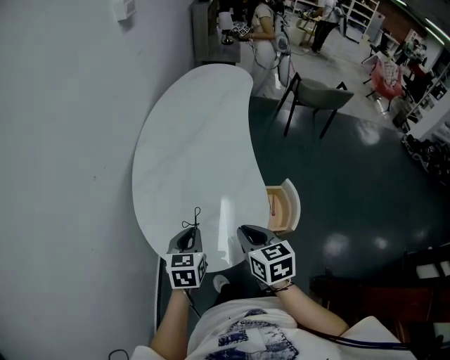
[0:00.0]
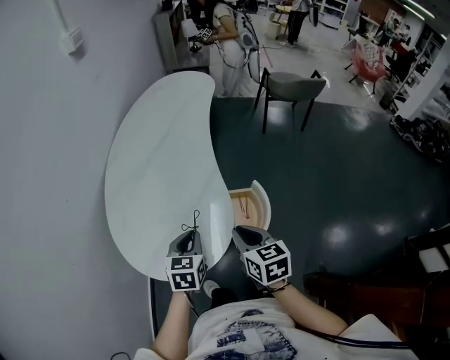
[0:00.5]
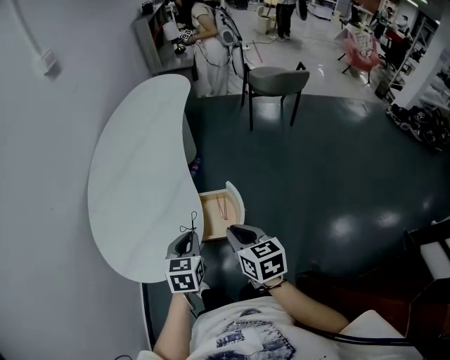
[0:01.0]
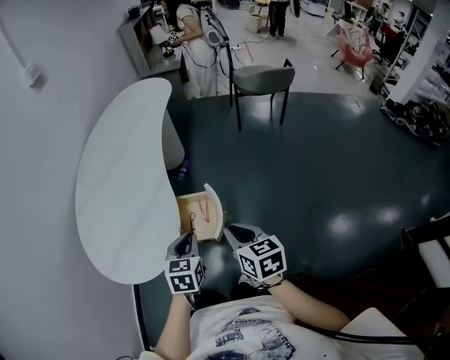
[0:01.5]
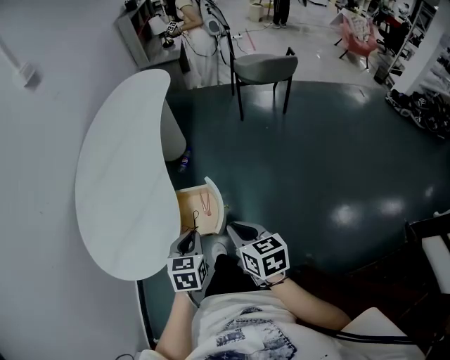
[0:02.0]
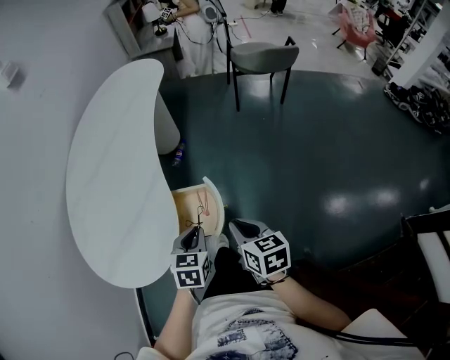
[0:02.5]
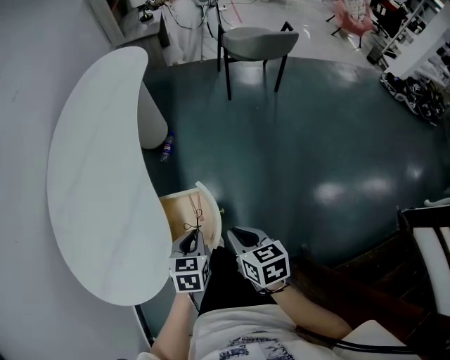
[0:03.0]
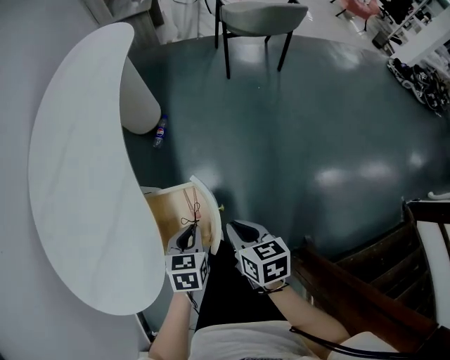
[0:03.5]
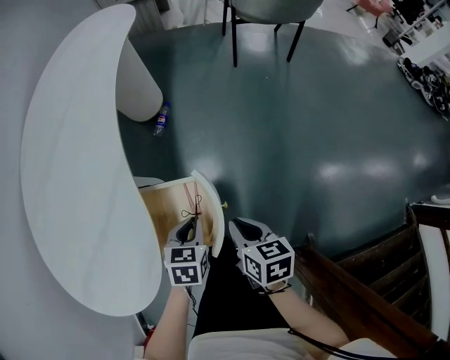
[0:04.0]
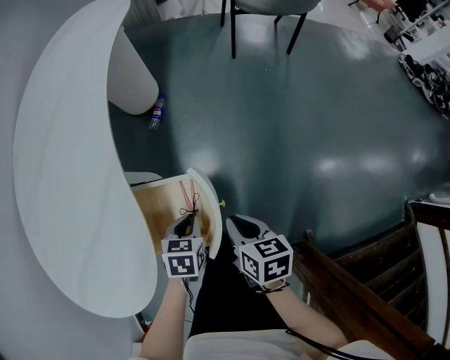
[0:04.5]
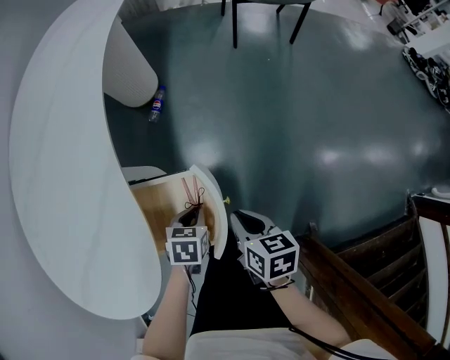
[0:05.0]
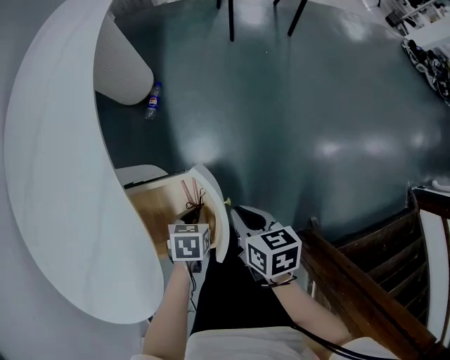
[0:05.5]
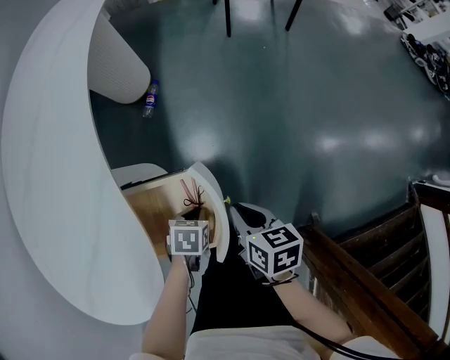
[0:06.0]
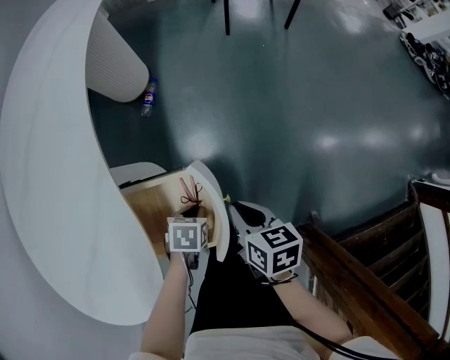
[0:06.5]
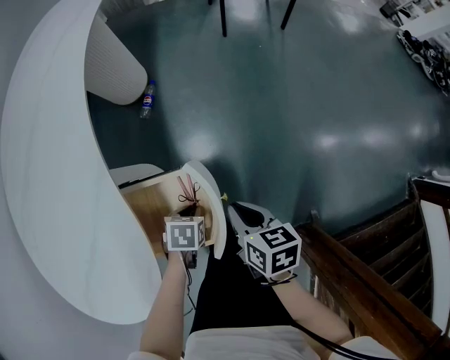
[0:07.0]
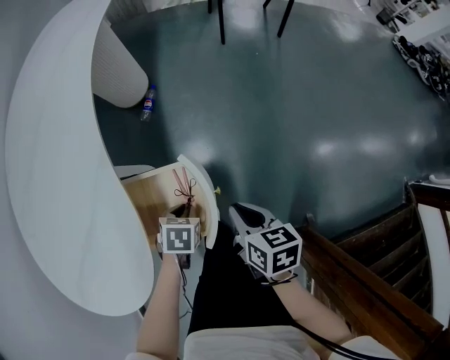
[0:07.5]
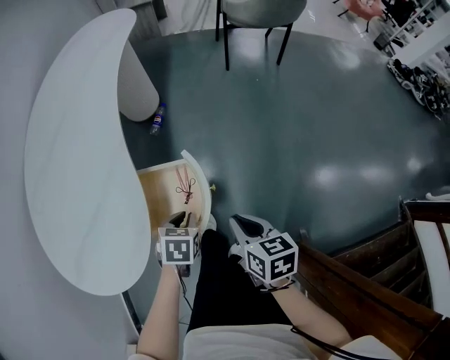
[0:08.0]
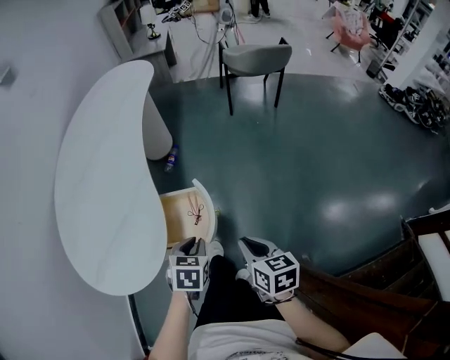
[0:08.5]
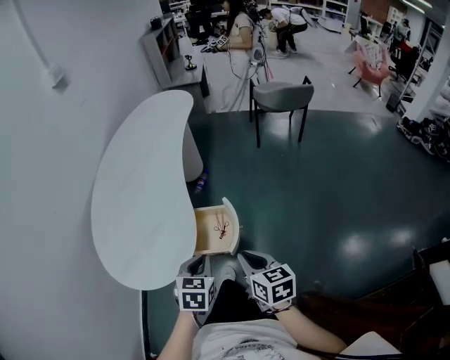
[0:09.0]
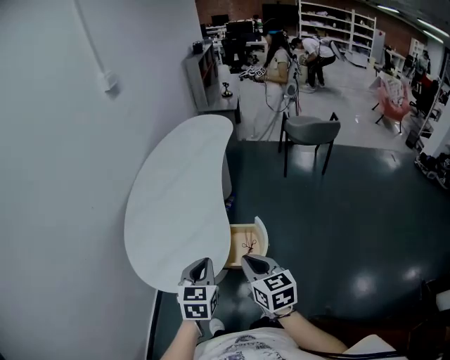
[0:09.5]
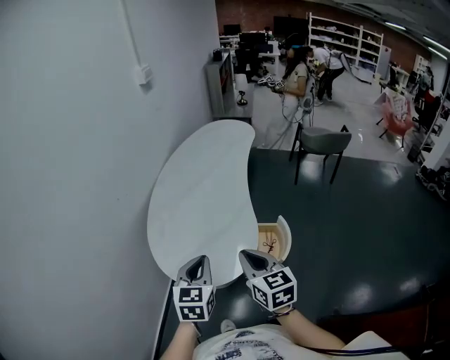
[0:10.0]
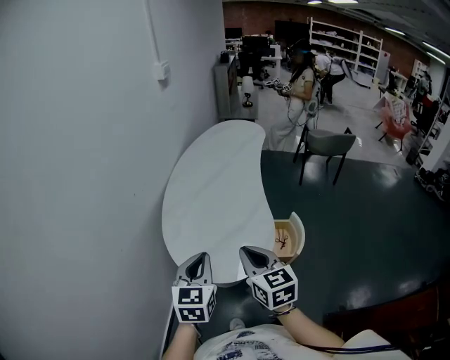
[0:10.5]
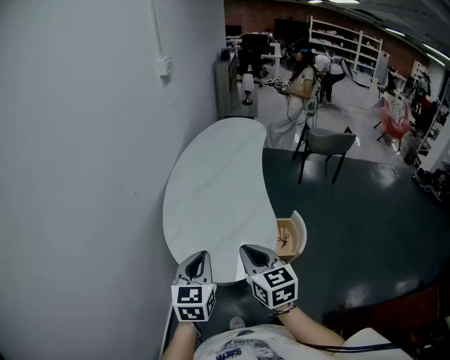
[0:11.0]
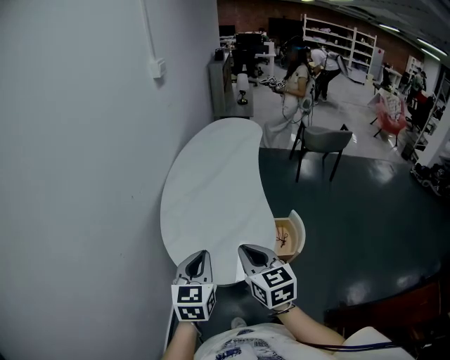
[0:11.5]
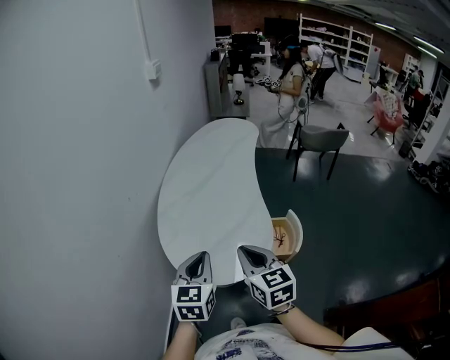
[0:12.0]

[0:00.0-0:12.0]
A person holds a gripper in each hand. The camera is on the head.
0:00.0 to 0:02.0: Both grippers move to the right, some 35 cm.
0:02.0 to 0:04.0: The grippers both shift downward and forward by some 25 cm.
0:04.0 to 0:06.0: The left gripper travels downward by approximately 10 cm, and changes its angle by approximately 20 degrees. Meanwhile the right gripper ends up some 5 cm from where it was.
0:06.0 to 0:08.0: The grippers both shift upward by approximately 10 cm.
0:08.0 to 0:10.0: The grippers both shift upward and to the left by roughly 50 cm. The left gripper tips its fingers upward by approximately 40 degrees; the right gripper changes its angle by approximately 30 degrees.
0:10.0 to 0:12.0: The two grippers go approximately 10 cm to the left.

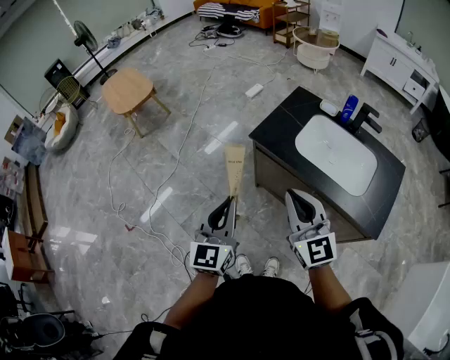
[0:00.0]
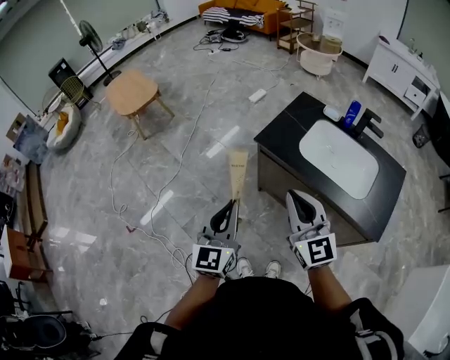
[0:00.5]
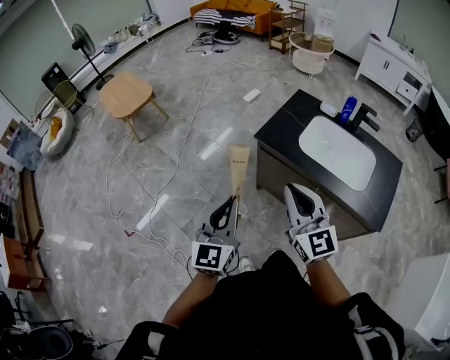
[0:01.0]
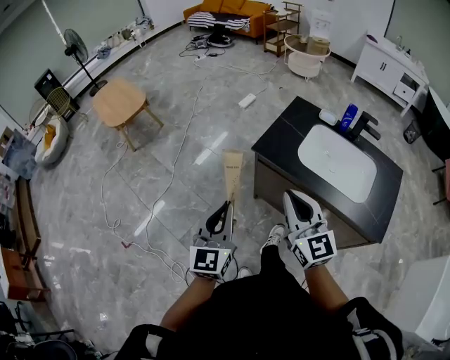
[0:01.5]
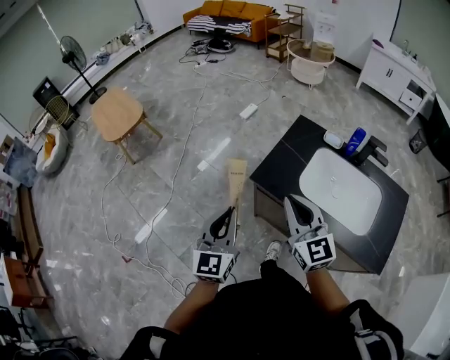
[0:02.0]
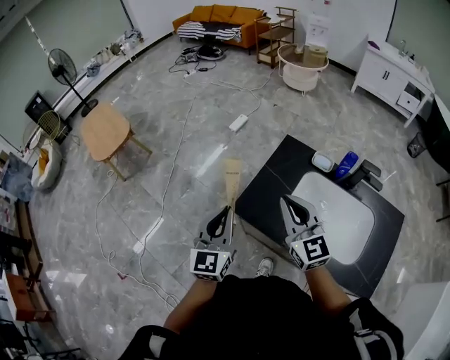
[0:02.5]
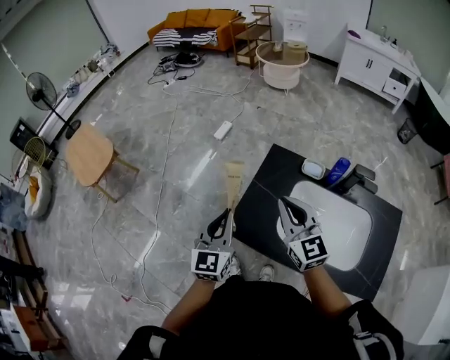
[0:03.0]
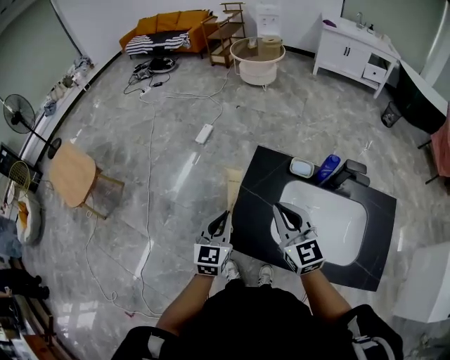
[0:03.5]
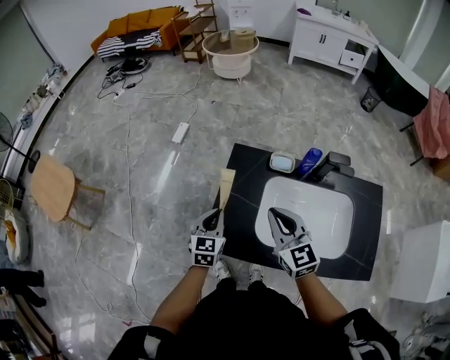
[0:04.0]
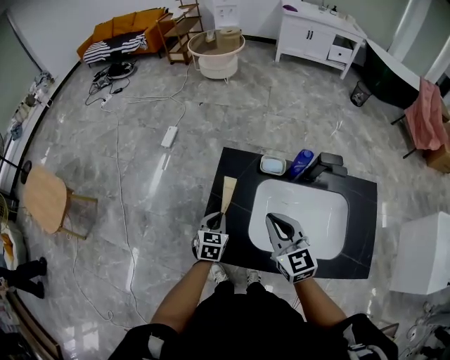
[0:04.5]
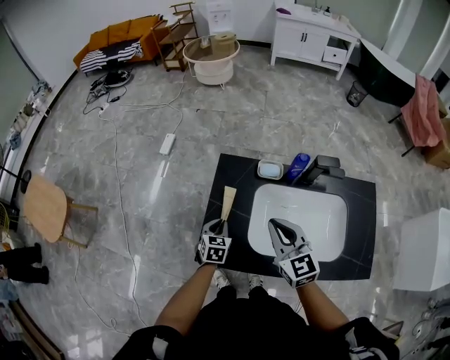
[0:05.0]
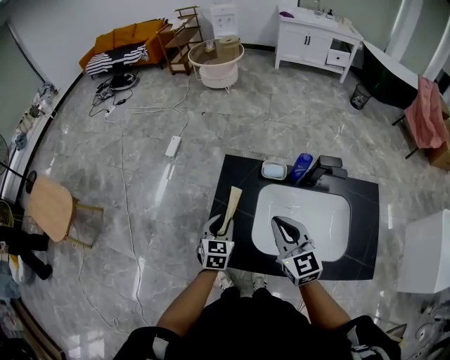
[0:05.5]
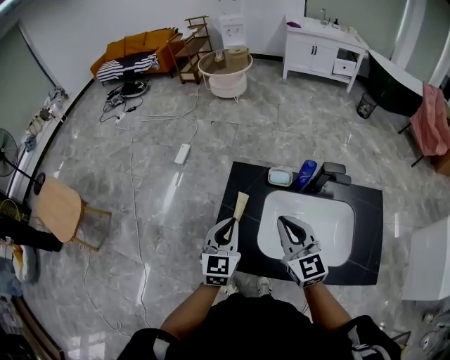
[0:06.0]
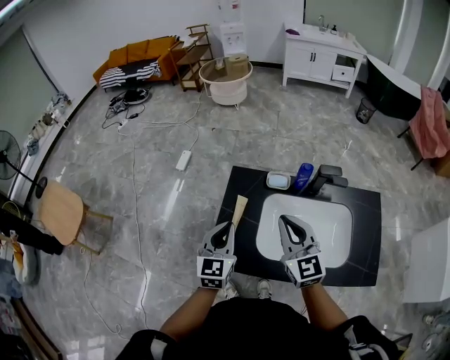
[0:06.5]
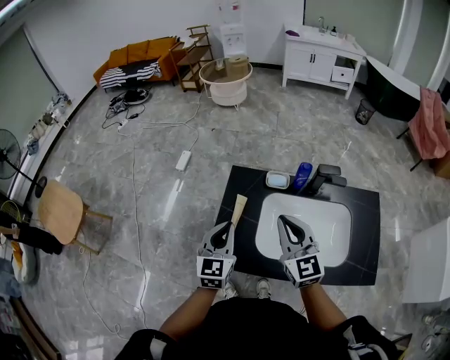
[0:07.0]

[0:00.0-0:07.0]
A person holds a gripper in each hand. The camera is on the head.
0:00.0 to 0:02.0: Both grippers travel together forward, roughly 20 cm.
0:02.0 to 0:03.5: Both grippers travel together forward and to the right, approximately 30 cm. The left gripper turns by some 20 degrees.
0:03.5 to 0:05.0: The left gripper moves downward, roughly 20 cm, and turns by some 30 degrees. Meanwhile the right gripper is displaced to the right by some 5 cm.
0:05.0 to 0:07.0: The left gripper is displaced upward by about 25 cm, swivels about 30 degrees, and opens, then closes again. Meanwhile the right gripper moves upward, roughly 5 cm.

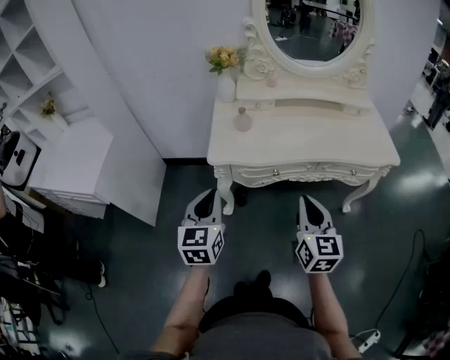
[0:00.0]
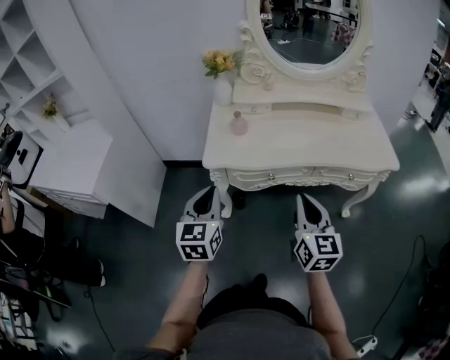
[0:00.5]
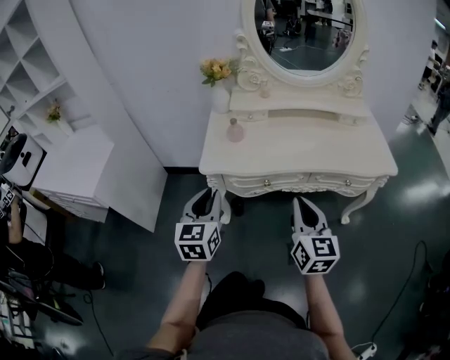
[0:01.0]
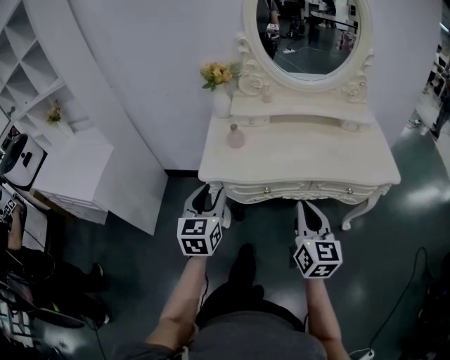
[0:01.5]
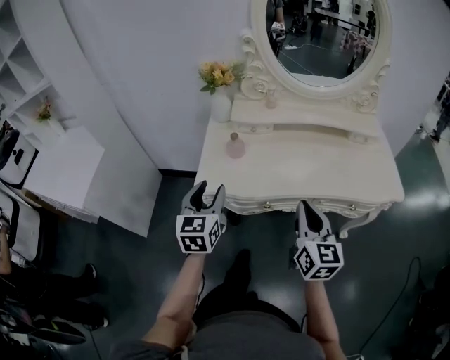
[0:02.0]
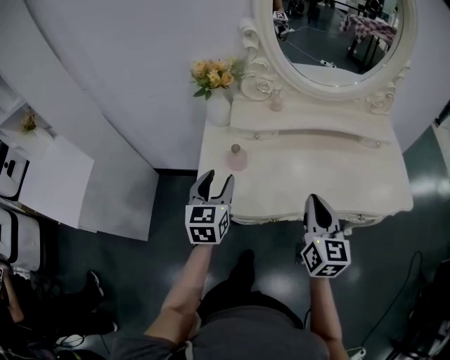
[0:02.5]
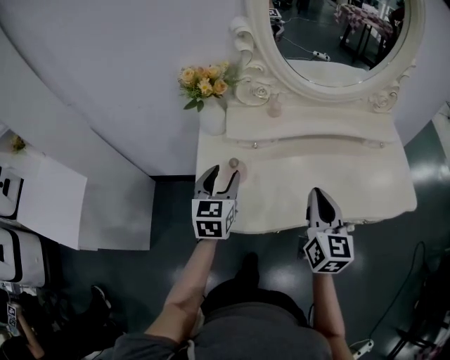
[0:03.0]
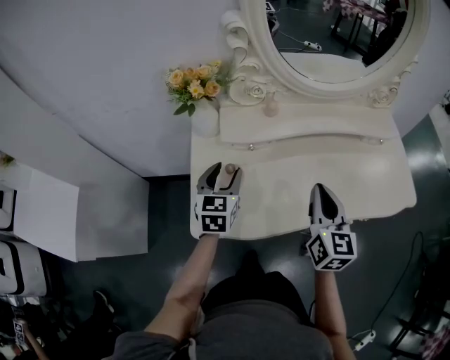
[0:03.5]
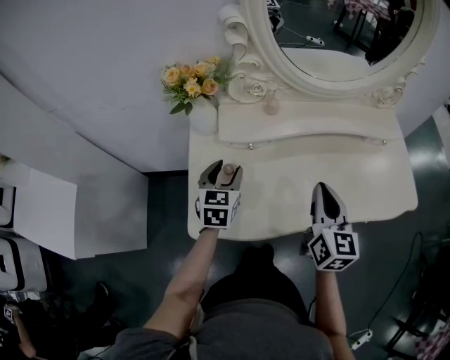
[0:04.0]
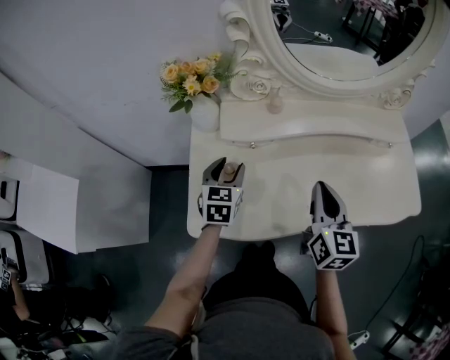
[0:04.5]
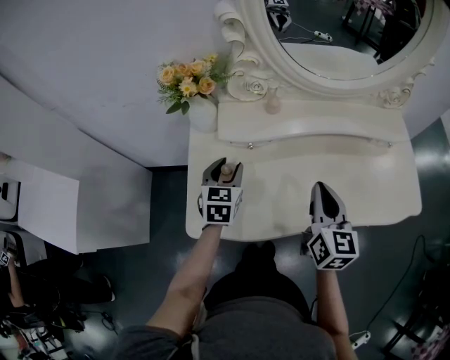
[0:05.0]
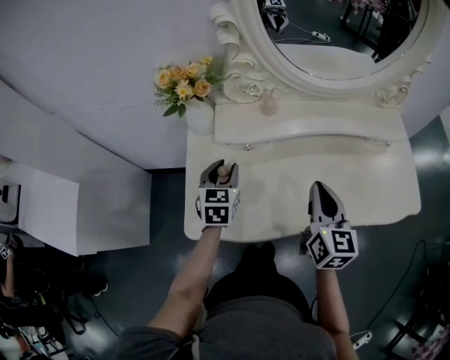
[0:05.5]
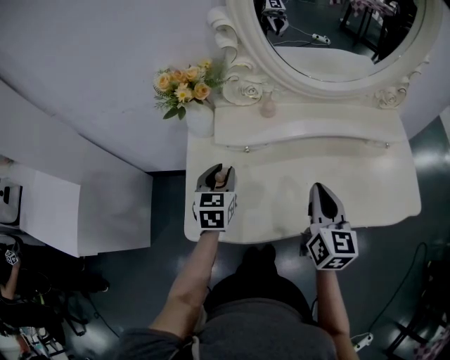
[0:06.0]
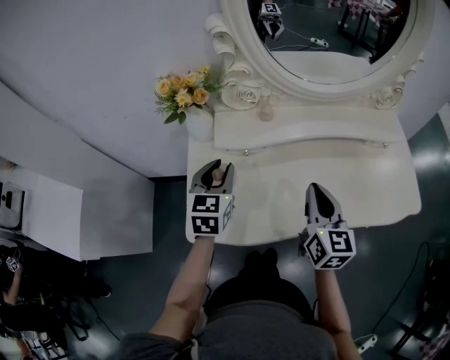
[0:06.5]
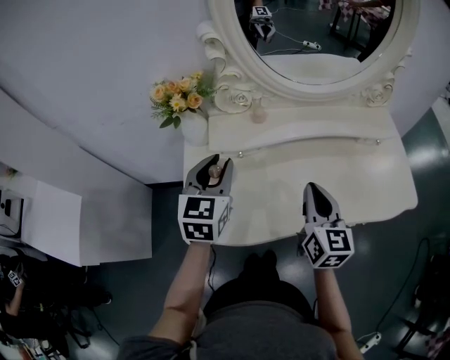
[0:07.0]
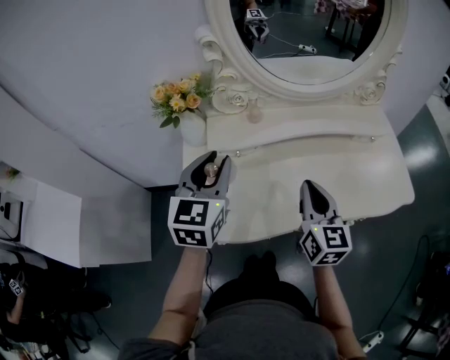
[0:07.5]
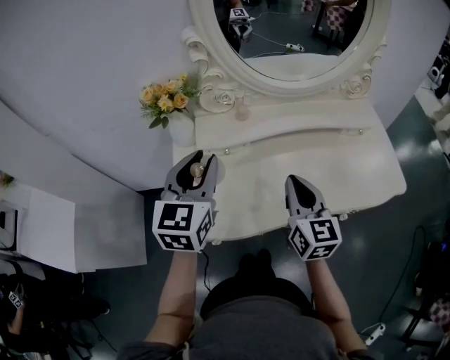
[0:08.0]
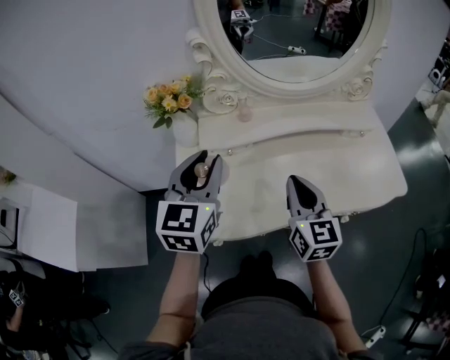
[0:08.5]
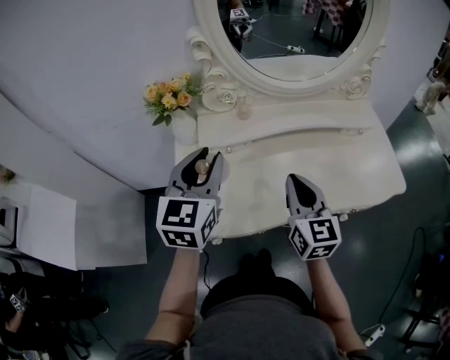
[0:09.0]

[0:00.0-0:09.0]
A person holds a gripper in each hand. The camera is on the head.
0:00.0 to 0:02.0: The two grippers go approximately 15 cm forward. The left gripper opens its fingers.
0:02.0 to 0:04.5: The right gripper travels forward by about 20 cm; the left gripper is displaced forward and downward by some 30 cm.
0:04.5 to 0:07.0: The left gripper goes roughly 15 cm upward, and closes.
0:07.0 to 0:09.0: The left gripper is displaced upward by some 5 cm.
